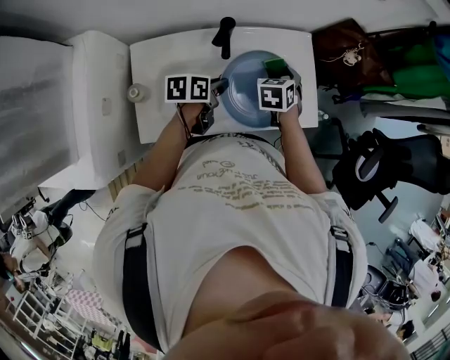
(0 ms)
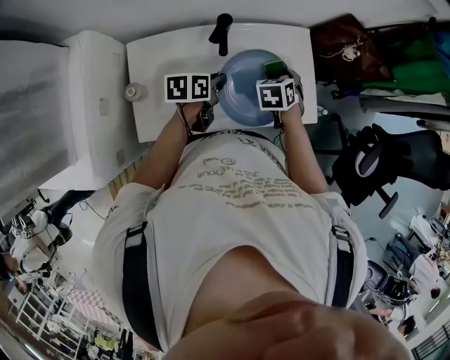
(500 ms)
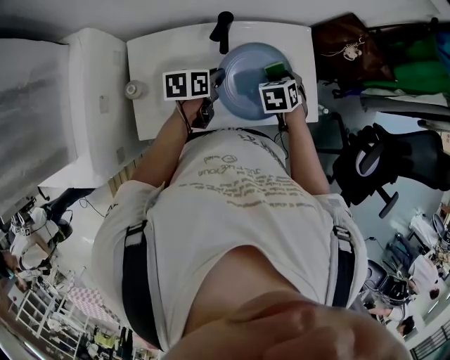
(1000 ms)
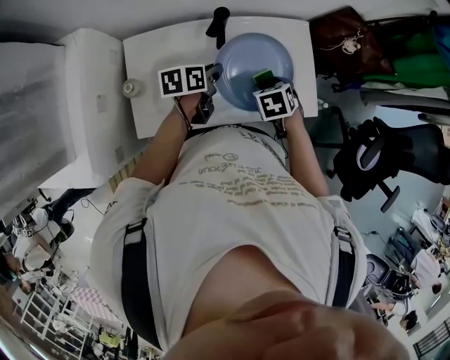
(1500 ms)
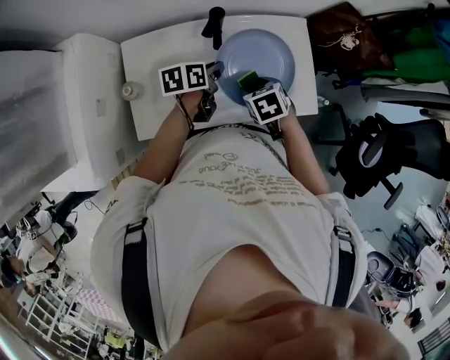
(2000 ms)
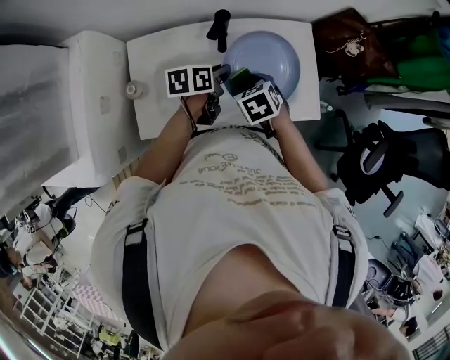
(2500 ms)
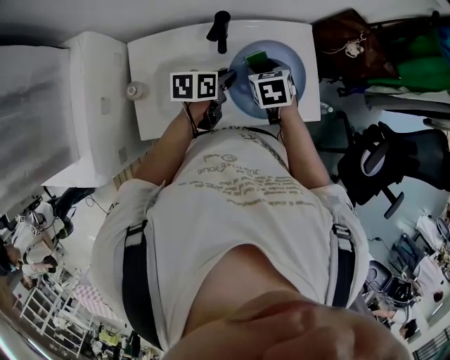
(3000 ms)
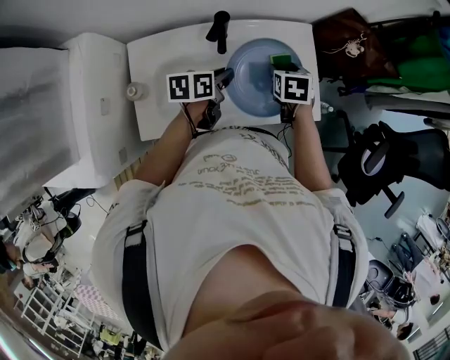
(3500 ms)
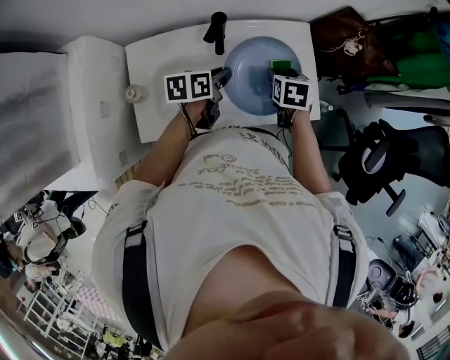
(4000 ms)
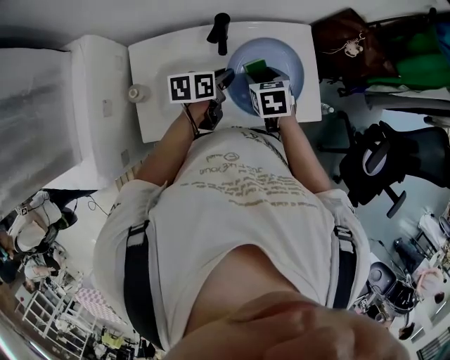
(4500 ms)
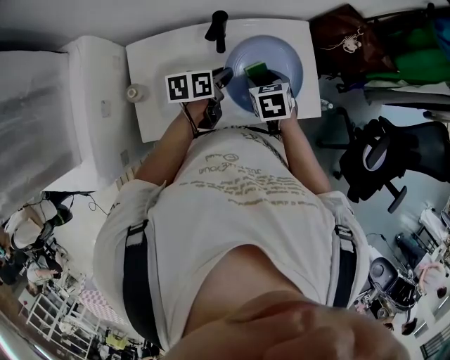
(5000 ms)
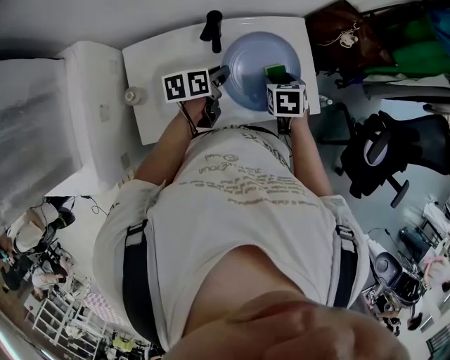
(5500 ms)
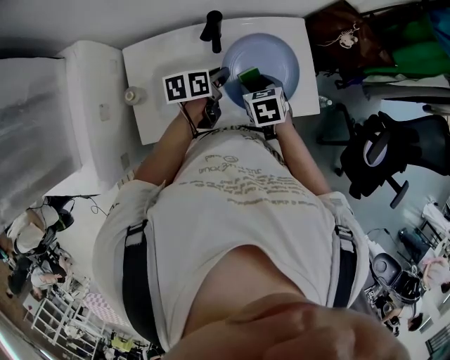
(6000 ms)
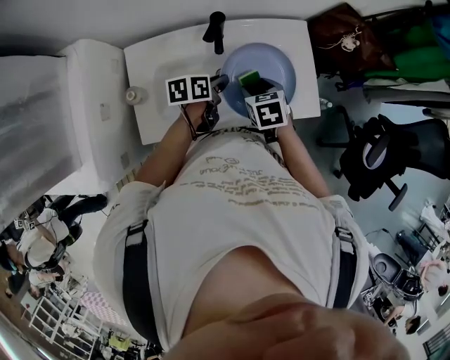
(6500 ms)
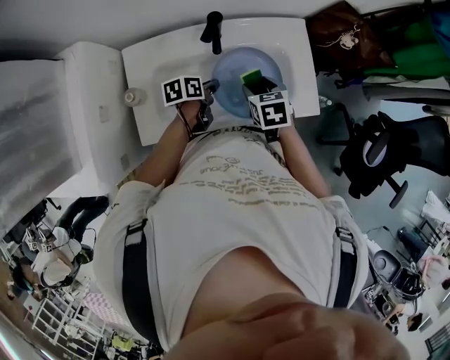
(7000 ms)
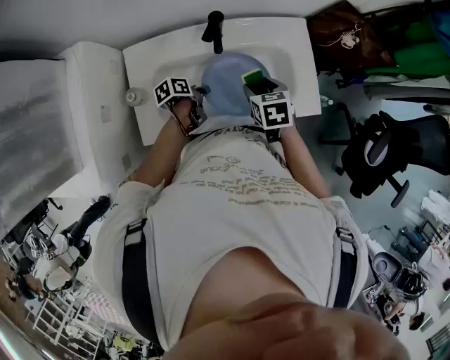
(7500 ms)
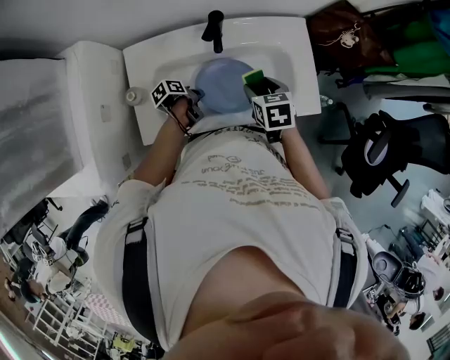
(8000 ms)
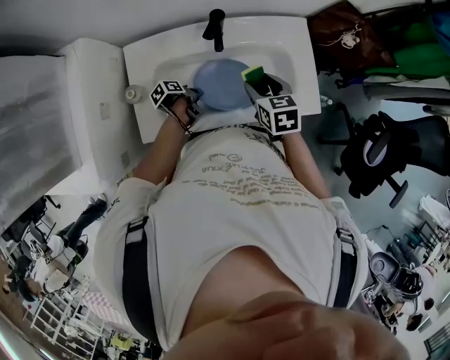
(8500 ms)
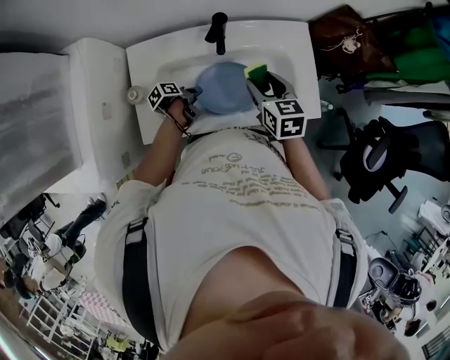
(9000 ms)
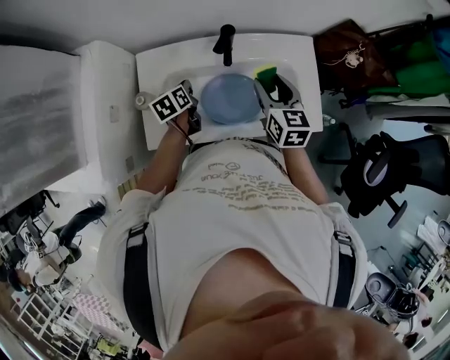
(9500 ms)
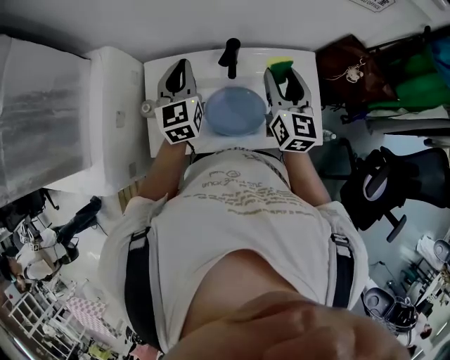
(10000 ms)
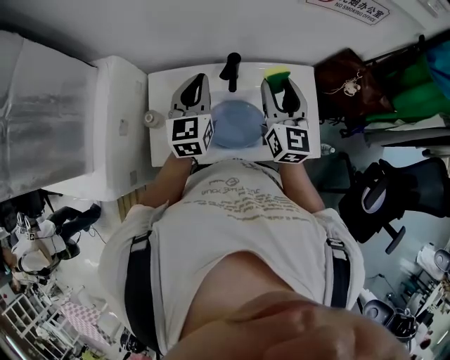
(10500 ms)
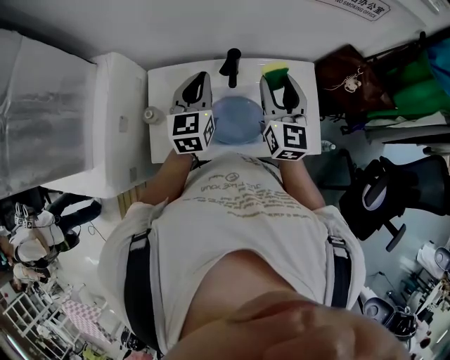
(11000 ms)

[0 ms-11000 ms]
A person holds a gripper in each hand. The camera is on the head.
0 ms to 2000 ms: The right gripper moves about 10 cm, and turns by about 30 degrees.
2000 ms to 3500 ms: The right gripper shifts about 10 cm forward and to the right, and turns by about 30 degrees.
3500 ms to 5500 ms: The right gripper goes to the left and returns, some 5 cm each way.
5500 ms to 7500 ms: The right gripper is displaced to the left by about 5 cm, while the left gripper travels downward, backward and to the left by approximately 15 cm, and swivels approximately 30 degrees.
7500 ms to 9000 ms: The left gripper ends up roughly 5 cm from where it was, and opens up. The right gripper moves upward, roughly 5 cm.
9000 ms to 11000 ms: The right gripper is displaced upward and forward by about 15 cm, and tips its fingers upward by some 30 degrees. The left gripper moves upward, roughly 35 cm, rolls clockwise, seen from behind, by approximately 70 degrees, and closes its fingers.

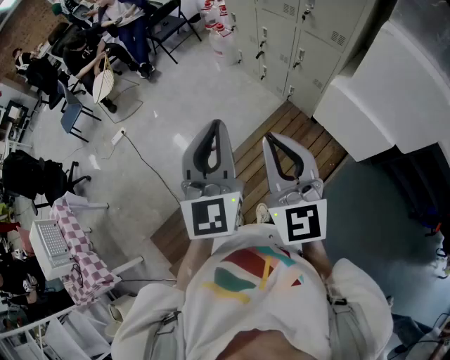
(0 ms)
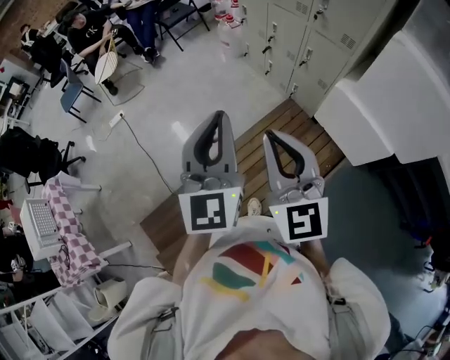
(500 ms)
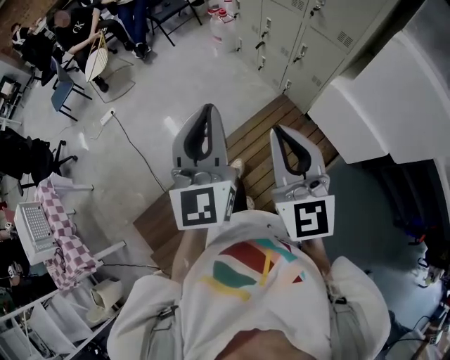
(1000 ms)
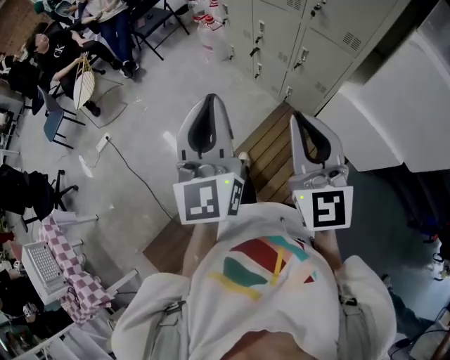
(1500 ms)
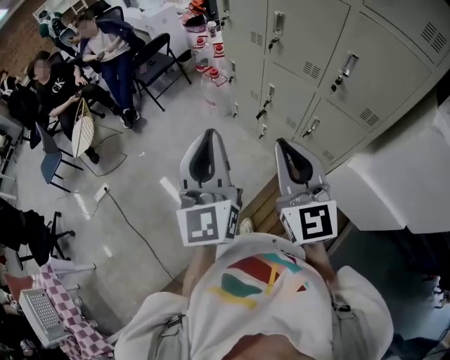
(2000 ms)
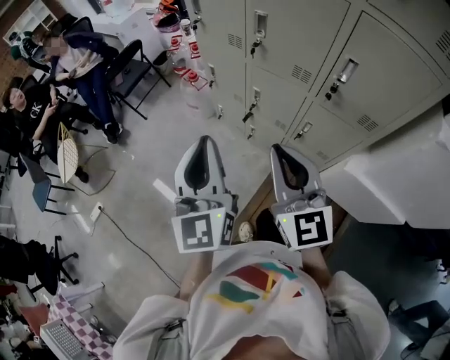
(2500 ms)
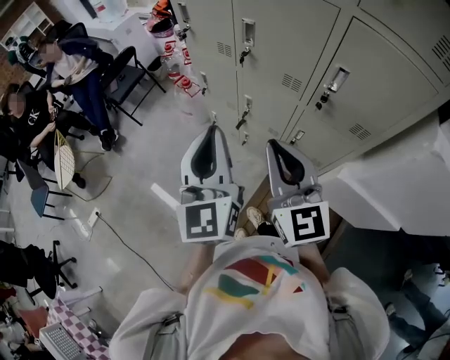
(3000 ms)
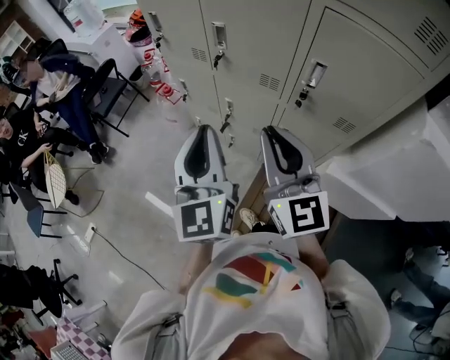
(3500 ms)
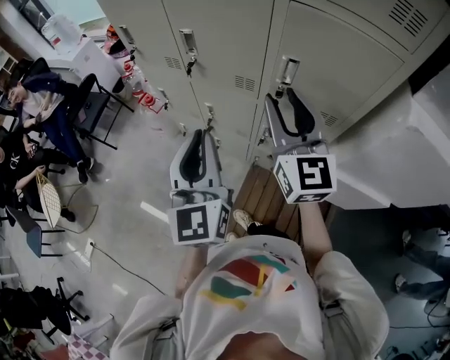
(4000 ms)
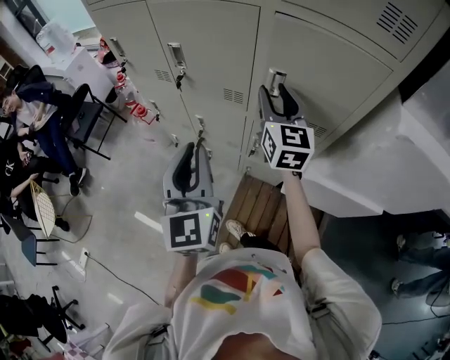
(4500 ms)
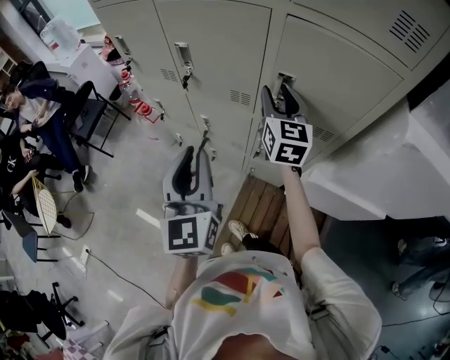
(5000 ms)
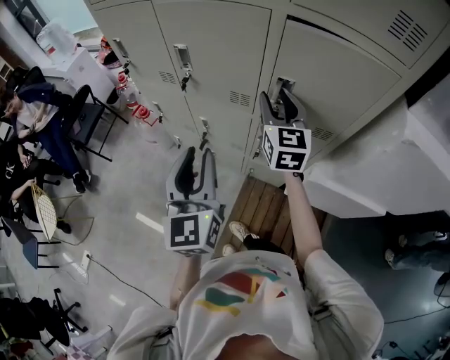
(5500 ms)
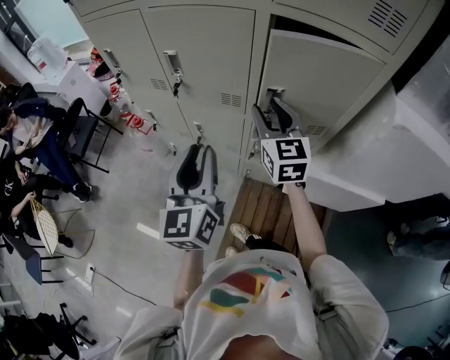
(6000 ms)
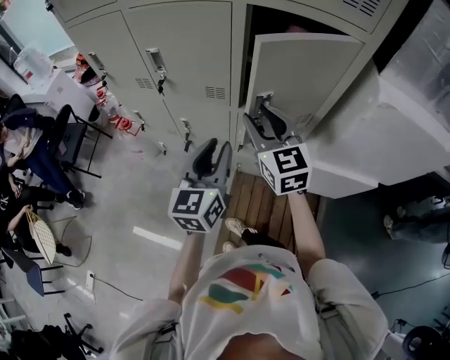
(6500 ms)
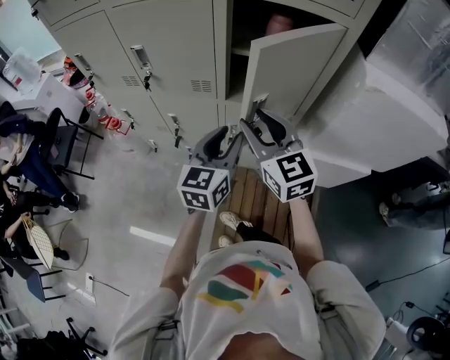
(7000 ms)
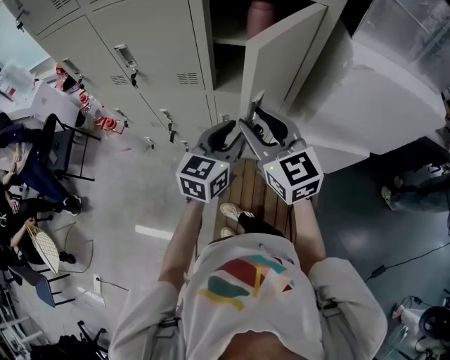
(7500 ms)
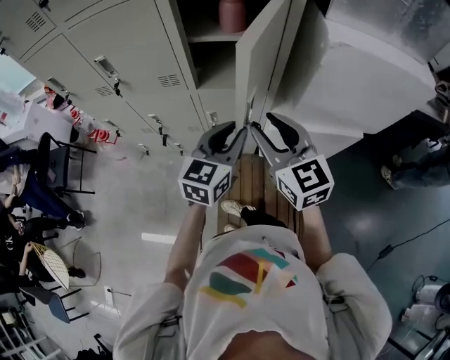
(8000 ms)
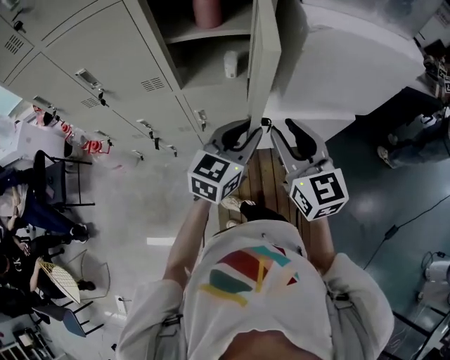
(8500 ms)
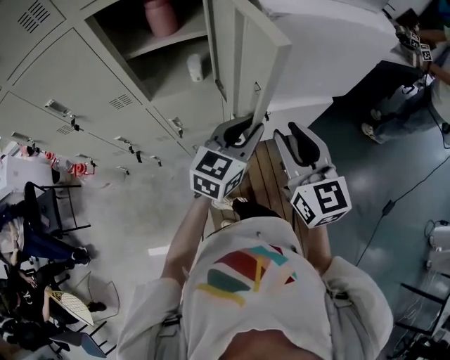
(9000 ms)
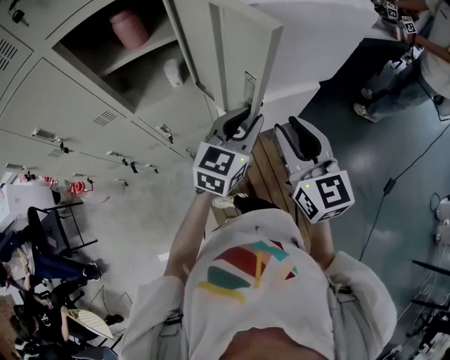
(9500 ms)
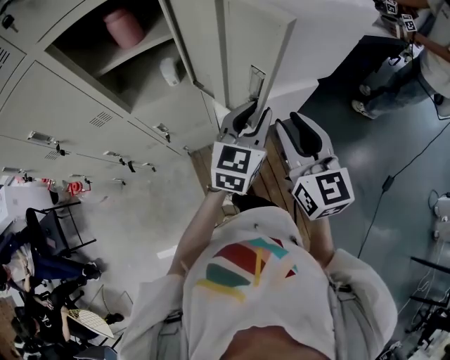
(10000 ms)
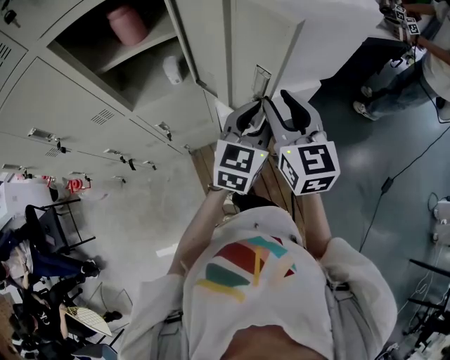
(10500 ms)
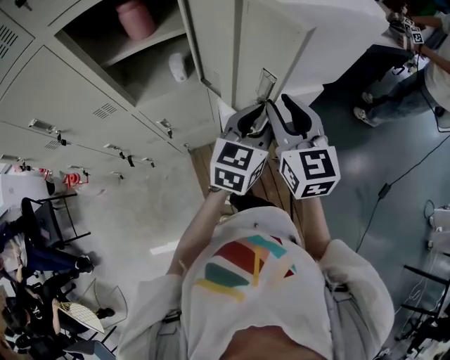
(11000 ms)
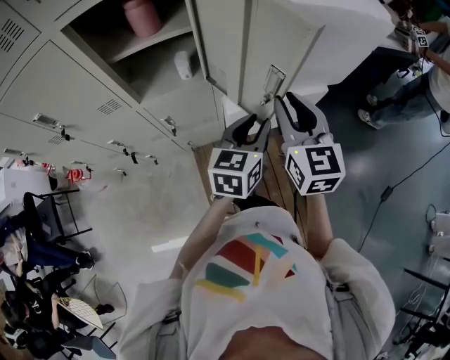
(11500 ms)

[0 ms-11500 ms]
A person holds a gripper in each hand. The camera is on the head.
0 ms to 2000 ms: The grippers both shift forward by roughly 40 cm.
2000 ms to 4000 ms: Both grippers travel together forward and to the right, approximately 25 cm. The right gripper swivels roughly 20 degrees, and opens.
4000 ms to 6000 ms: The left gripper opens its fingers. Meanwhile the right gripper moves downward and forward, about 10 cm.
6000 ms to 7500 ms: The left gripper goes some 20 cm to the right and downward, and rotates about 40 degrees. Meanwhile the right gripper heads backward and to the right, covering about 15 cm.
7500 ms to 9500 ms: The right gripper moves roughly 25 cm, and rotates approximately 40 degrees. The left gripper moves about 25 cm, and swivels approximately 30 degrees.
9500 ms to 11500 ms: The left gripper swivels about 20 degrees. The right gripper goes some 5 cm forward.

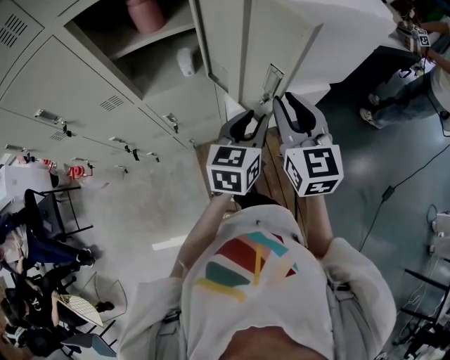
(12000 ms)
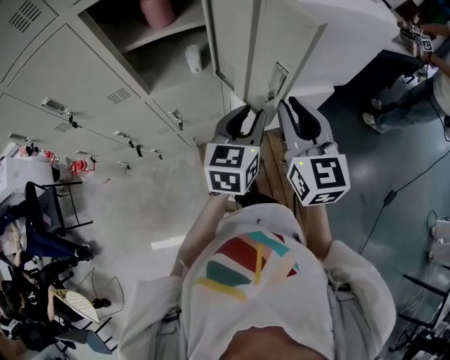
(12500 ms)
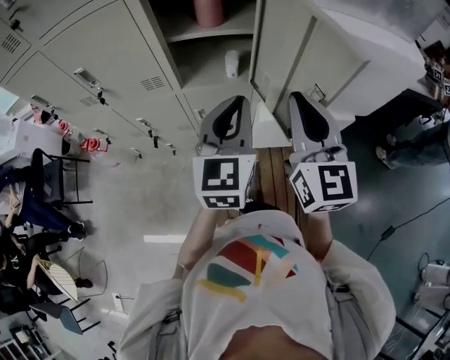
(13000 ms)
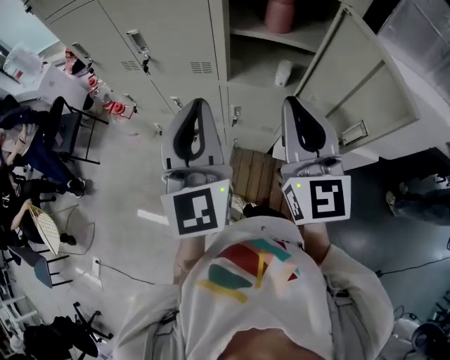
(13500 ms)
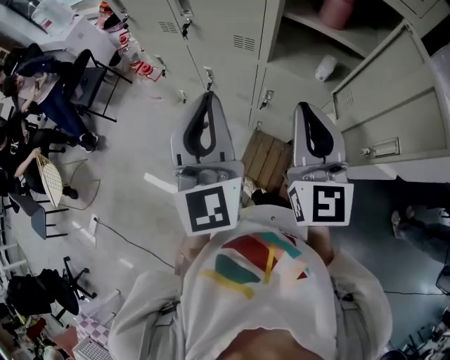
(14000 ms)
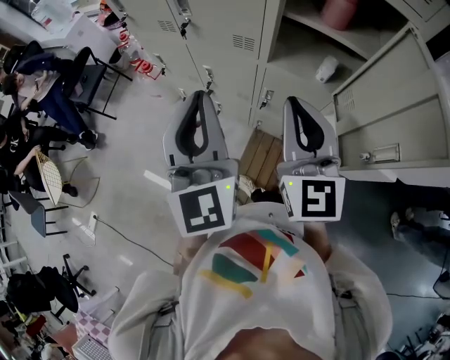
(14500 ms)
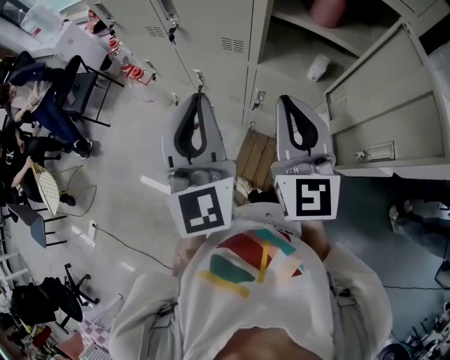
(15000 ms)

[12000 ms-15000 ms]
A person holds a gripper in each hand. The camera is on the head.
12000 ms to 13500 ms: The right gripper moves some 25 cm, and swivels roughly 30 degrees, while the left gripper ends up roughly 35 cm from where it was, turns by about 60 degrees, and closes.
13500 ms to 15000 ms: The right gripper heads to the left and downward, covering roughly 10 cm. The left gripper travels to the left by approximately 5 cm.

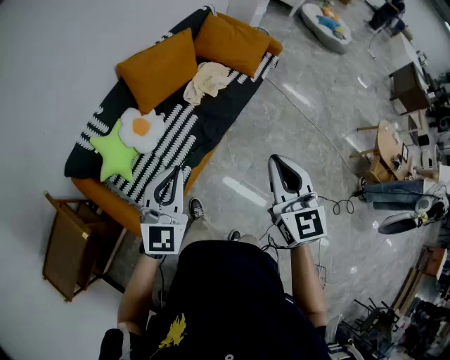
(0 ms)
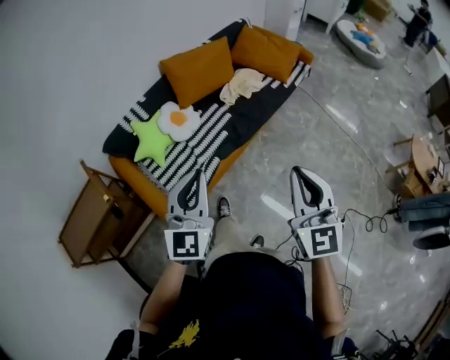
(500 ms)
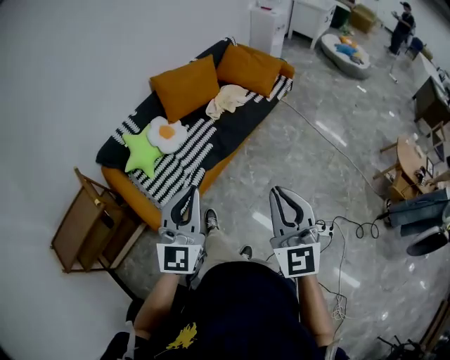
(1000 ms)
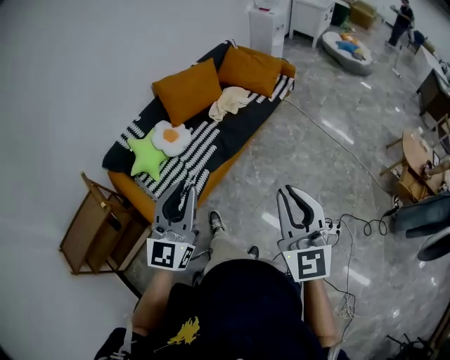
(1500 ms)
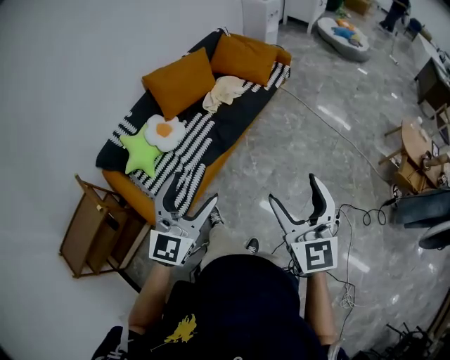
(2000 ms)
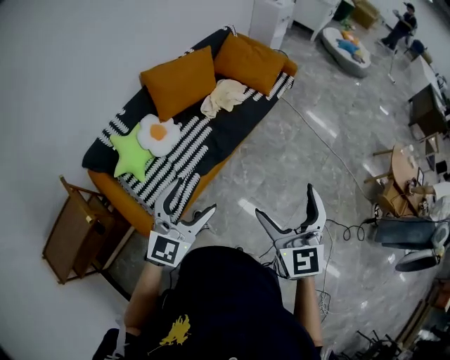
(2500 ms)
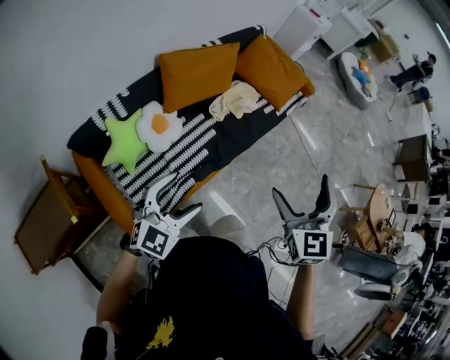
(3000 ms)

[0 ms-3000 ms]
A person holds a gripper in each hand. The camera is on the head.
0 ms to 1500 ms: The grippers both shift backward and to the right by about 35 cm.
1500 ms to 3000 ms: The right gripper goes about 40 cm forward and to the left, changes its angle by some 20 degrees, and opens its fingers. The left gripper shifts roughly 40 cm forward, to the left and downward, changes its angle by about 30 degrees, and opens its fingers.
